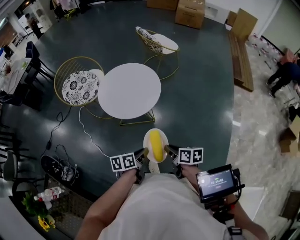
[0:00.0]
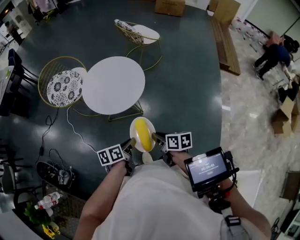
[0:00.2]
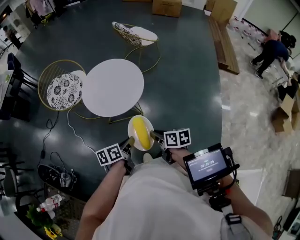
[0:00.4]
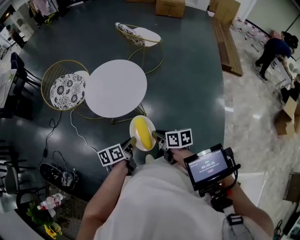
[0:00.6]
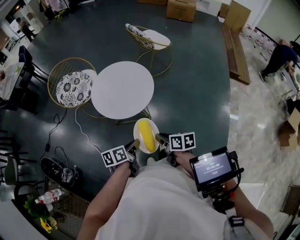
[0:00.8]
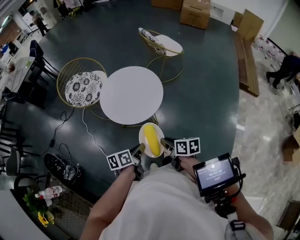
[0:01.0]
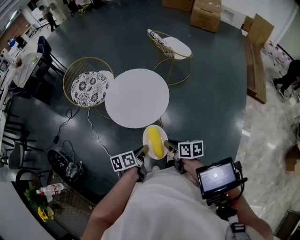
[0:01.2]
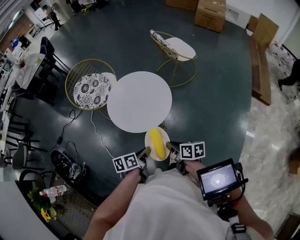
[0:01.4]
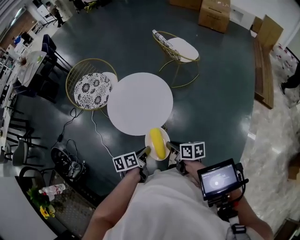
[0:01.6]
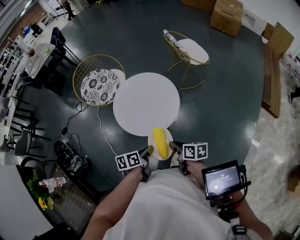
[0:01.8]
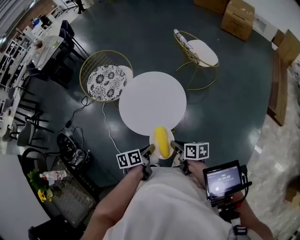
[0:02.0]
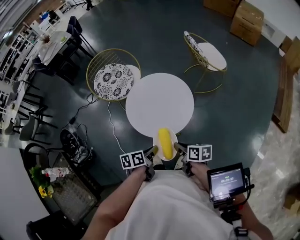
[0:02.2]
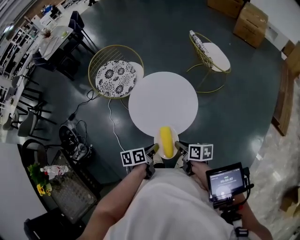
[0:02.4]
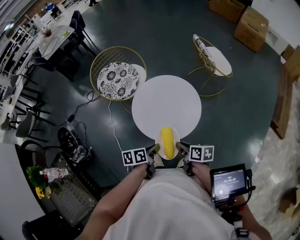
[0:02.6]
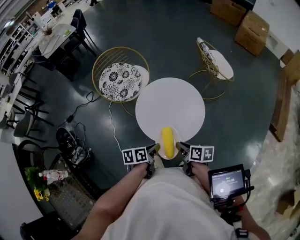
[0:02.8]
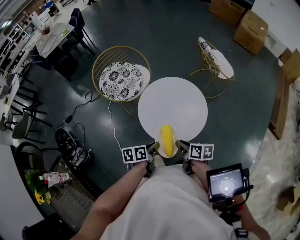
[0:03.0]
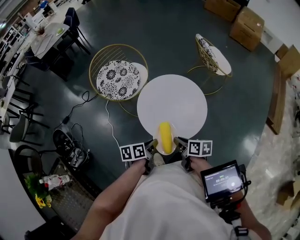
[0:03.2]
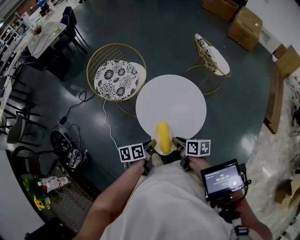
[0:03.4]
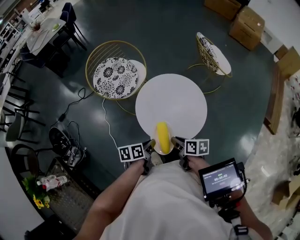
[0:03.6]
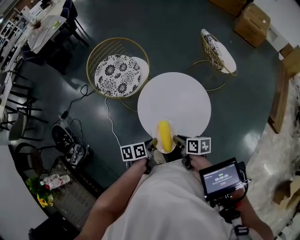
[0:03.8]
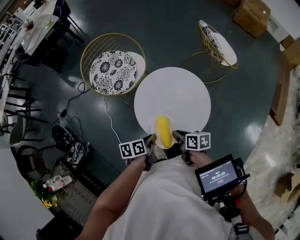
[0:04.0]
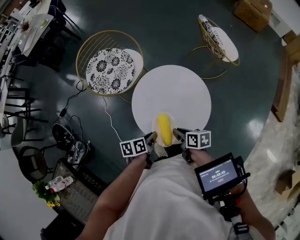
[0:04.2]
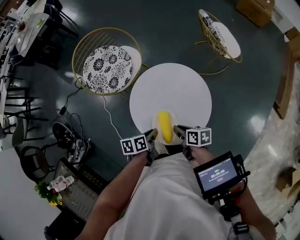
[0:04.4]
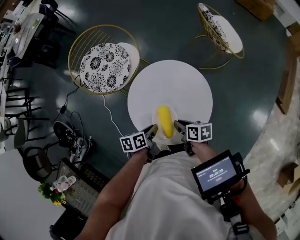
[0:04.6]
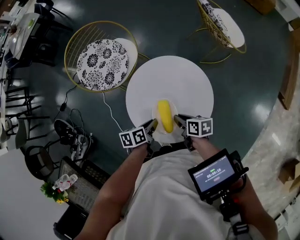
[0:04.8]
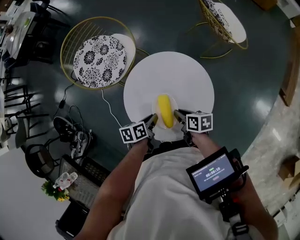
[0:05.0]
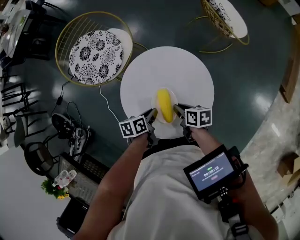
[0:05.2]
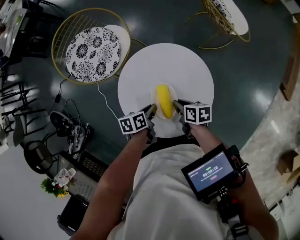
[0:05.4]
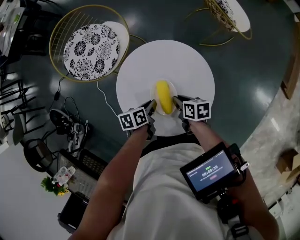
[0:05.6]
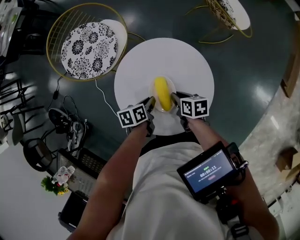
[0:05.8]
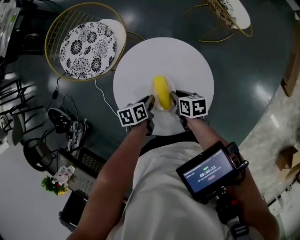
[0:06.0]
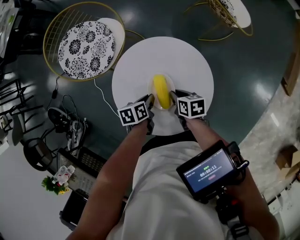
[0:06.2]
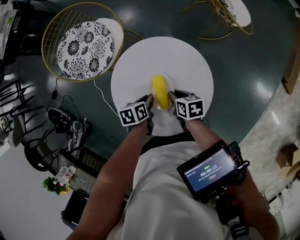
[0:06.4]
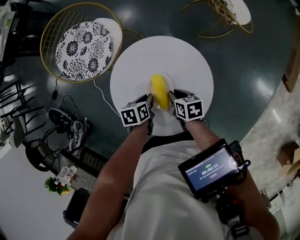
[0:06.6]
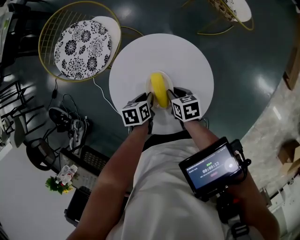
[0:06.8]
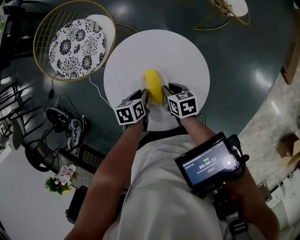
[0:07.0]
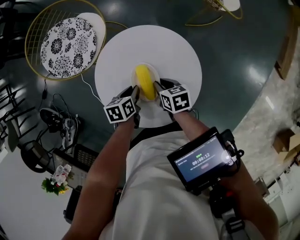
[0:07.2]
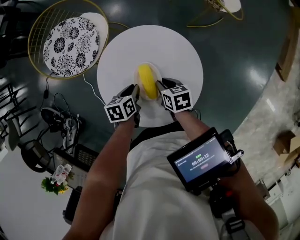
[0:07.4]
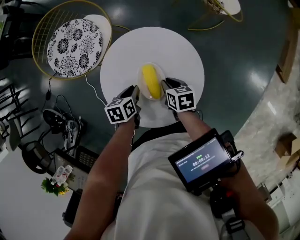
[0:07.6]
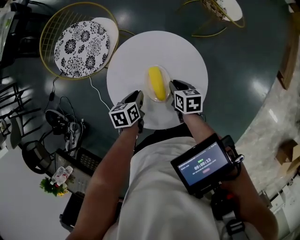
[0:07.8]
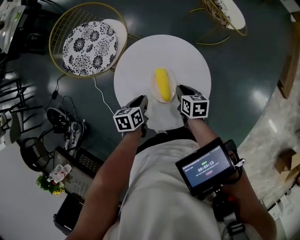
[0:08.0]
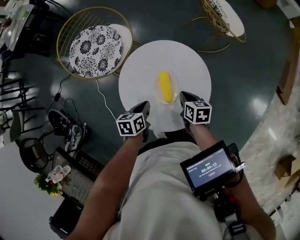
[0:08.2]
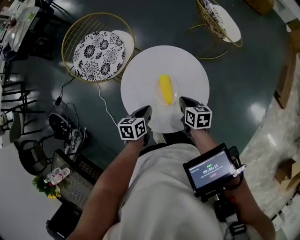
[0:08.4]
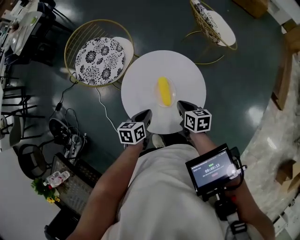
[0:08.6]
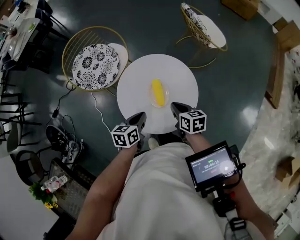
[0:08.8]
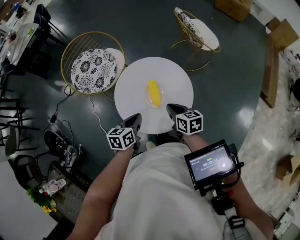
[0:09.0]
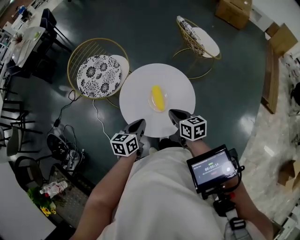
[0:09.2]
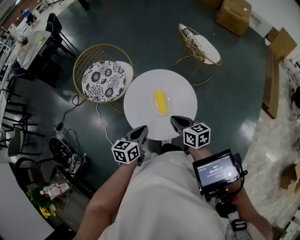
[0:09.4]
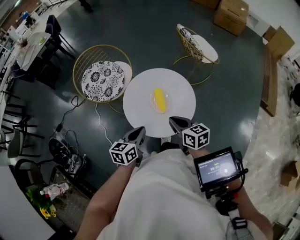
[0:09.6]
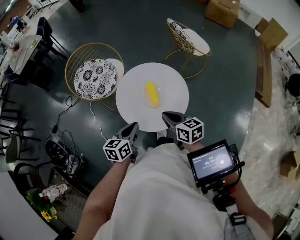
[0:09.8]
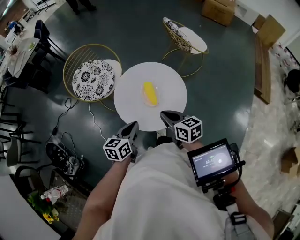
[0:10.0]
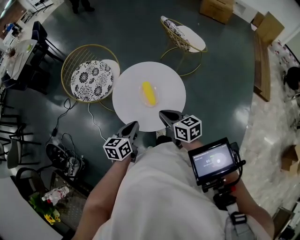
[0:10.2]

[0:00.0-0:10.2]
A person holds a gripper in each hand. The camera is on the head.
0:00.0 to 0:01.4: The two grippers go roughly 10 cm forward.
0:01.4 to 0:03.0: Both grippers travel together forward and to the left, roughly 15 cm.
0:03.0 to 0:04.4: Both grippers move forward and downward, about 15 cm.
0:04.4 to 0:05.8: Both grippers move forward and downward, roughly 15 cm.
0:05.8 to 0:07.2: There are only small adjustments of the grippers.
0:07.2 to 0:08.8: The two grippers go approximately 15 cm upward and backward. The left gripper swivels some 20 degrees.
0:08.8 to 0:10.2: The left gripper is displaced backward and upward by approximately 10 cm. Meanwhile the right gripper moves upward and backward, approximately 15 cm.

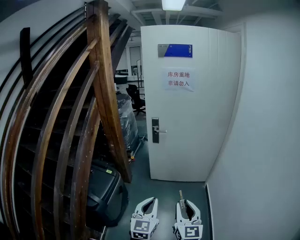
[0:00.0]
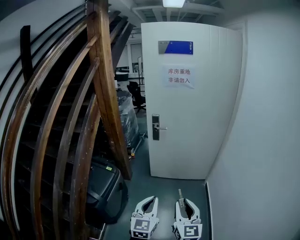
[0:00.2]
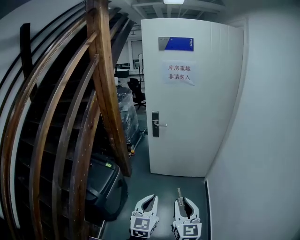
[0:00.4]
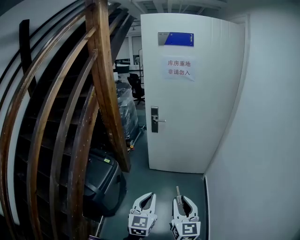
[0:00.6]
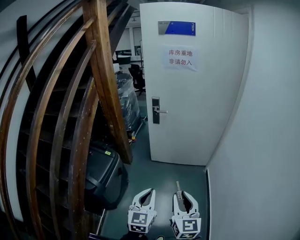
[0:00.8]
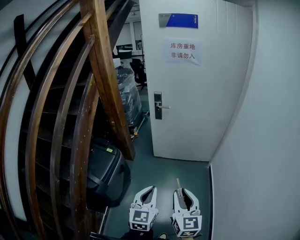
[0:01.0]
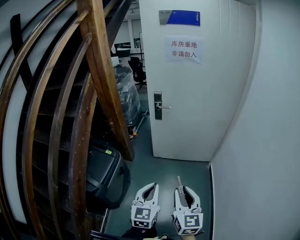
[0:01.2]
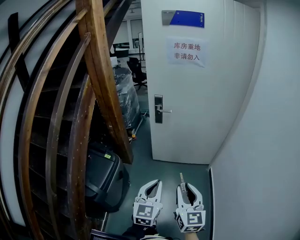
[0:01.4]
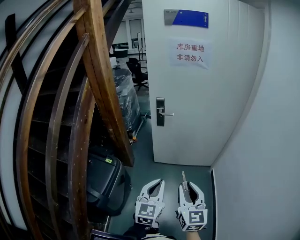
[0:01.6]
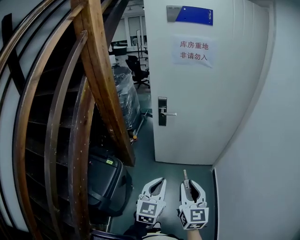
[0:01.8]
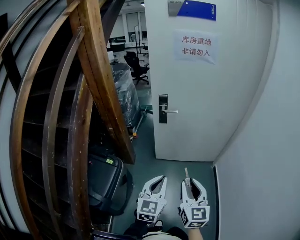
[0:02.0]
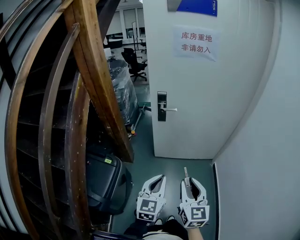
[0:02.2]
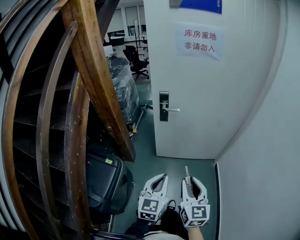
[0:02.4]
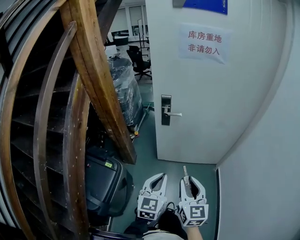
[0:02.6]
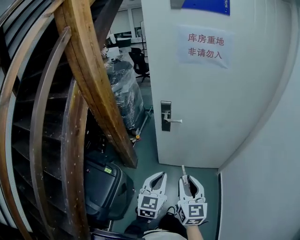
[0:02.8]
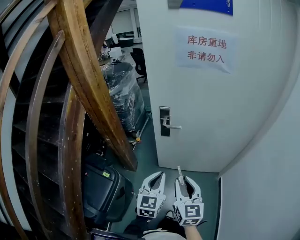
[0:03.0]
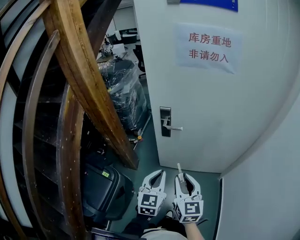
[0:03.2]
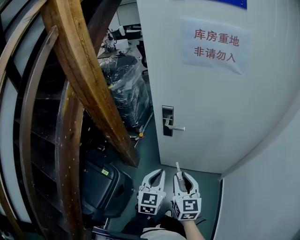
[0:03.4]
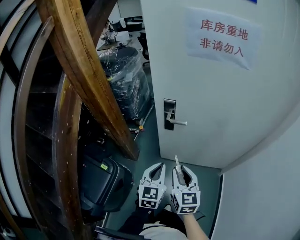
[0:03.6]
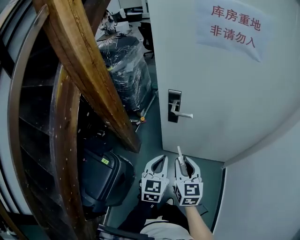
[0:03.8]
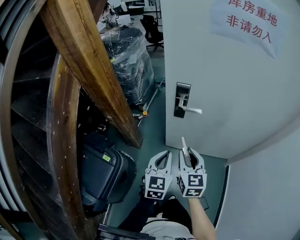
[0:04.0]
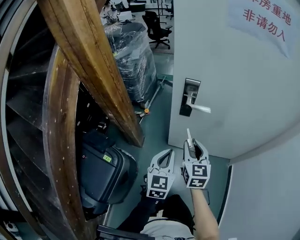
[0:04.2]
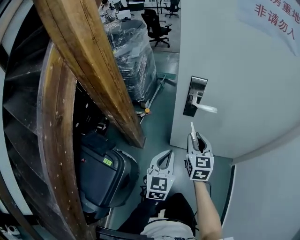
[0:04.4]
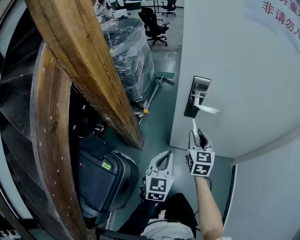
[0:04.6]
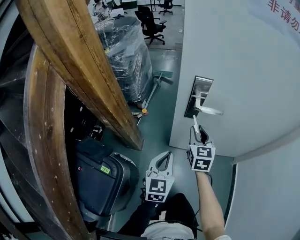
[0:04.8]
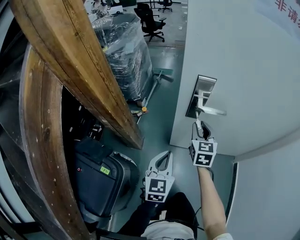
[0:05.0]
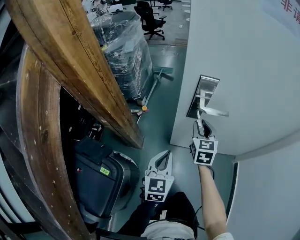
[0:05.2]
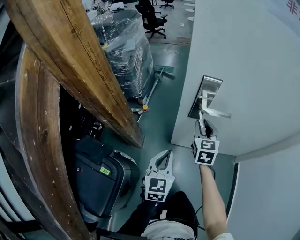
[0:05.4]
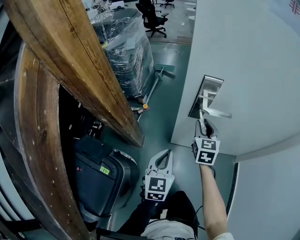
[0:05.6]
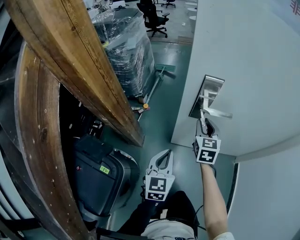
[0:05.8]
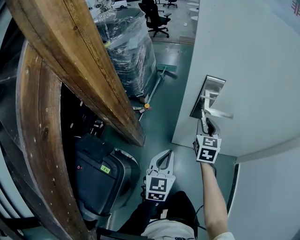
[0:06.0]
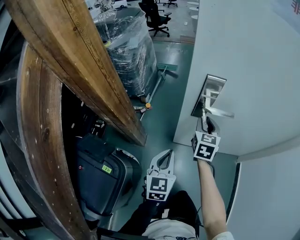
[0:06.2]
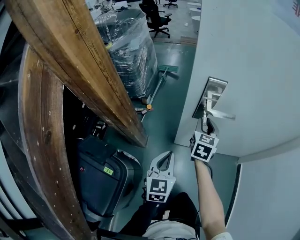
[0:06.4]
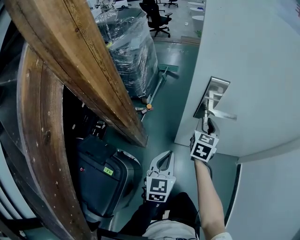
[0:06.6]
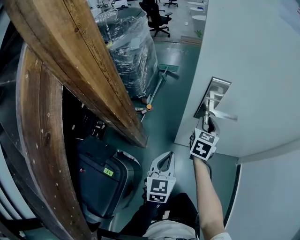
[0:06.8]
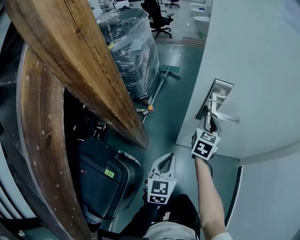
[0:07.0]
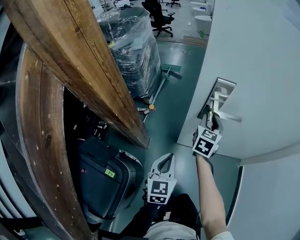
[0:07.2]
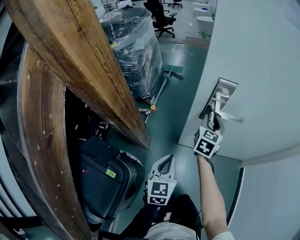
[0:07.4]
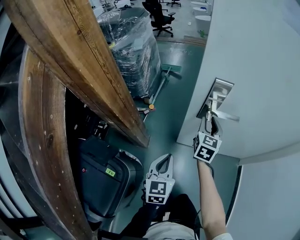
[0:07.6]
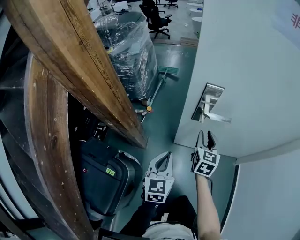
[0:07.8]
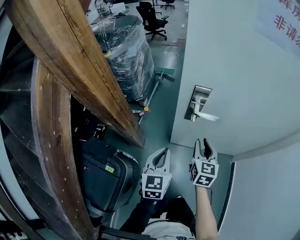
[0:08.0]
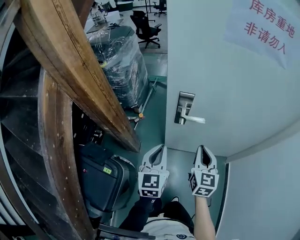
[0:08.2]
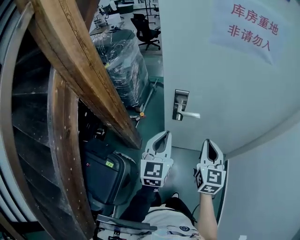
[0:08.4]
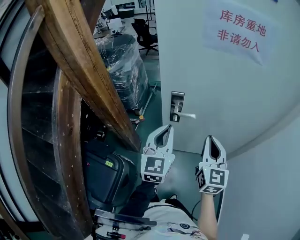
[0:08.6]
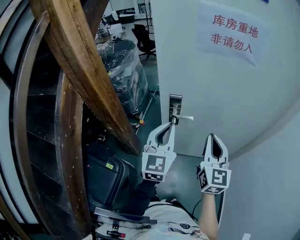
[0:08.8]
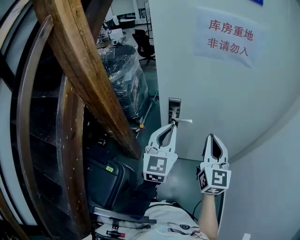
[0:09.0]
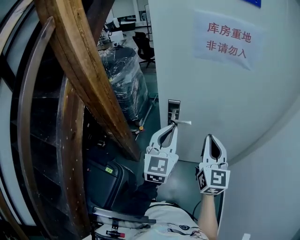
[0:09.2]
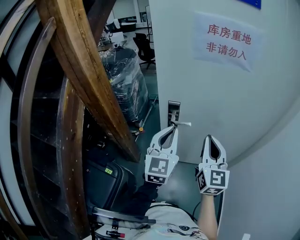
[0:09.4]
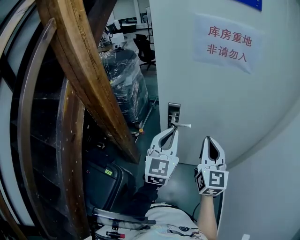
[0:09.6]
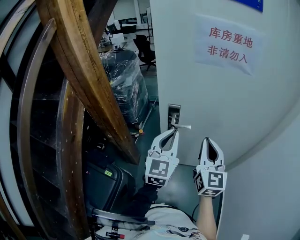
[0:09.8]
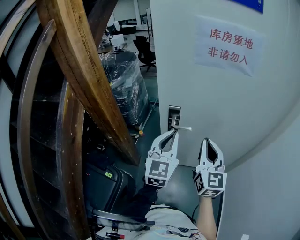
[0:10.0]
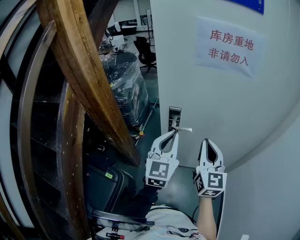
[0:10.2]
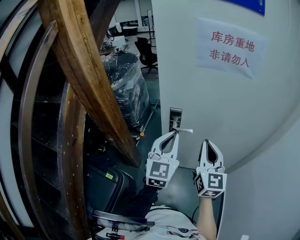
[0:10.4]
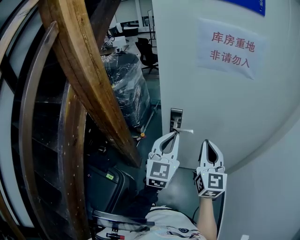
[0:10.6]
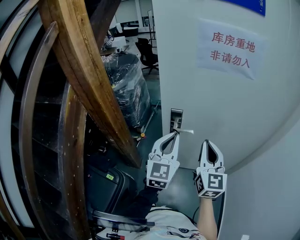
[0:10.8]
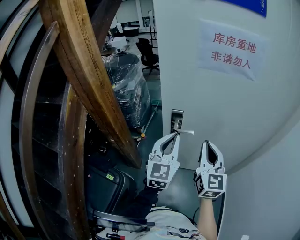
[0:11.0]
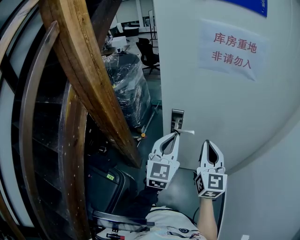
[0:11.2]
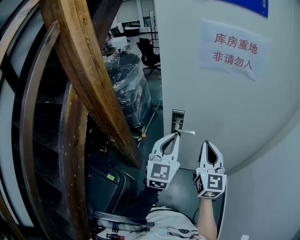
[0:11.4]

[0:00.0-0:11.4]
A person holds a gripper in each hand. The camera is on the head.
0:00.0 to 0:01.4: The two grippers go some 10 cm forward.
0:01.4 to 0:02.8: Both grippers travel together forward, approximately 25 cm.
0:02.8 to 0:04.2: The two grippers go about 25 cm forward and downward.
0:04.2 to 0:05.6: The left gripper heads downward, forward and to the left, covering about 15 cm. The right gripper is displaced forward and downward by approximately 20 cm.
0:05.6 to 0:07.2: The grippers stay close to where they were, moving slightly.
0:07.2 to 0:08.6: The left gripper moves upward, some 30 cm, and turns by some 20 degrees. The right gripper travels upward, backward and to the right by roughly 40 cm, turns by approximately 20 degrees, and closes up.
0:08.6 to 0:10.0: The left gripper ends up roughly 5 cm from where it was.
0:10.0 to 0:11.4: The grippers make only small movements.

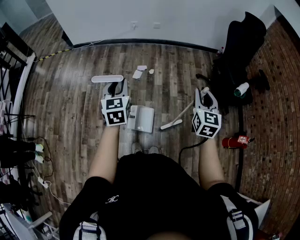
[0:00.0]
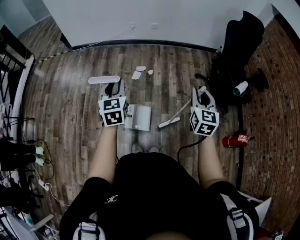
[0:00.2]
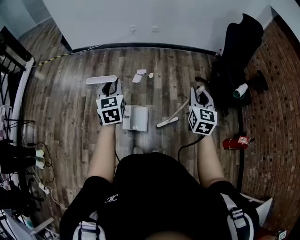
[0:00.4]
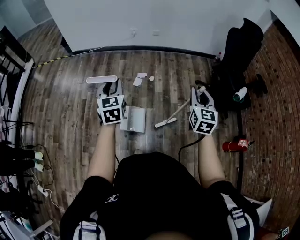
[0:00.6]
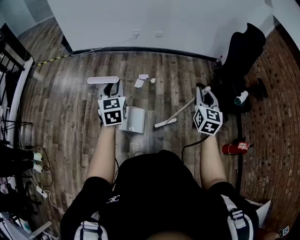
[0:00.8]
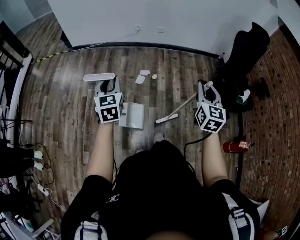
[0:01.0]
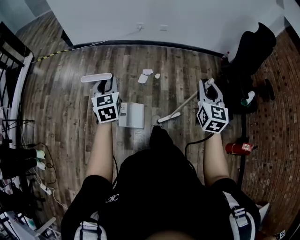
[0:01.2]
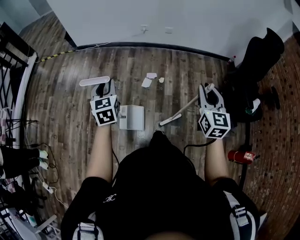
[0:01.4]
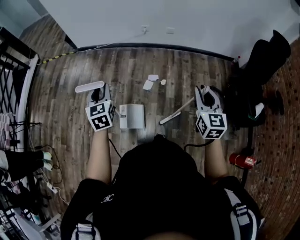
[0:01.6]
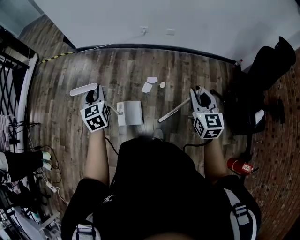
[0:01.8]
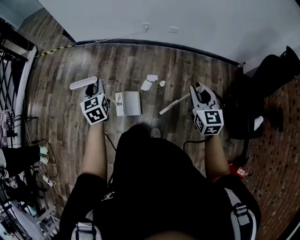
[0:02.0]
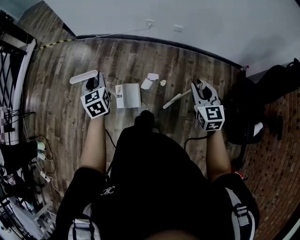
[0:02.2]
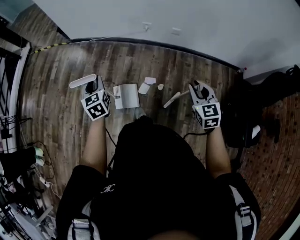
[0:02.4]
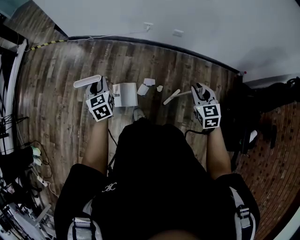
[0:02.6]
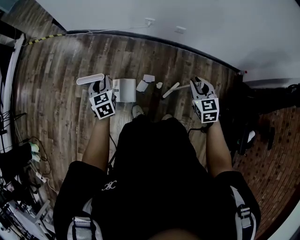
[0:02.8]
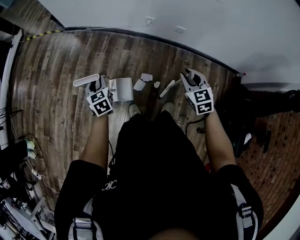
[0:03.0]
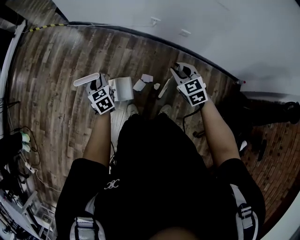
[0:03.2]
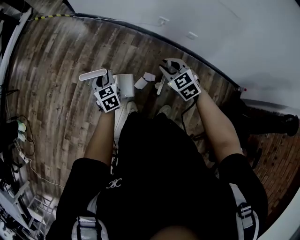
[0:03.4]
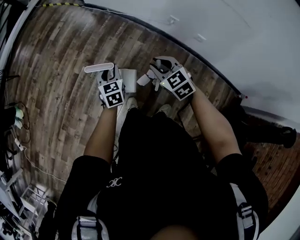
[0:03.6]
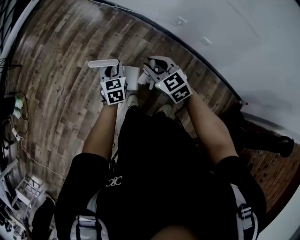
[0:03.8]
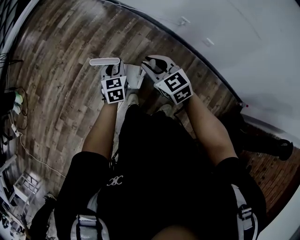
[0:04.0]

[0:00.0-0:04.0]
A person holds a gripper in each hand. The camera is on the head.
0:00.0 to 0:01.4: Both grippers move forward and to the left, approximately 20 cm.
0:01.4 to 0:02.6: Both grippers move forward and downward, some 35 cm. The right gripper changes its angle by approximately 30 degrees.
0:02.6 to 0:04.0: The left gripper shifts about 10 cm downward; the right gripper shifts by roughly 35 cm, and swivels roughly 50 degrees.
